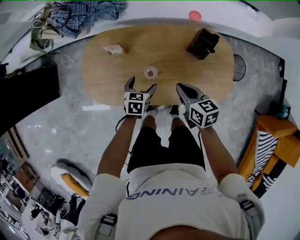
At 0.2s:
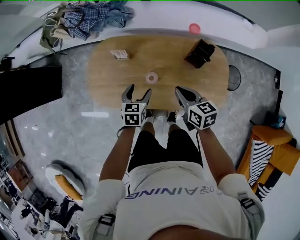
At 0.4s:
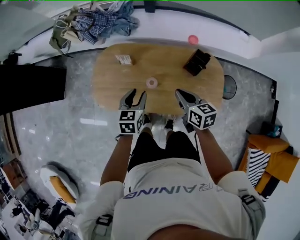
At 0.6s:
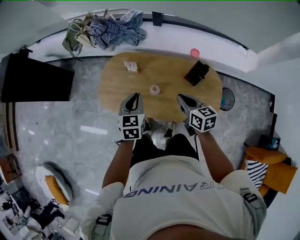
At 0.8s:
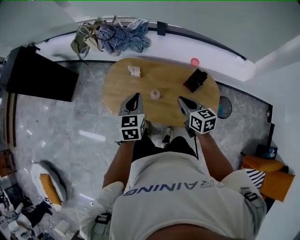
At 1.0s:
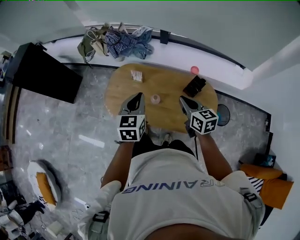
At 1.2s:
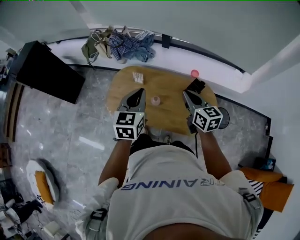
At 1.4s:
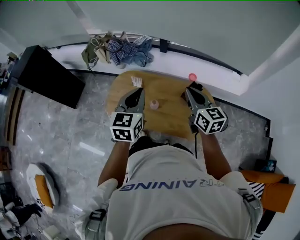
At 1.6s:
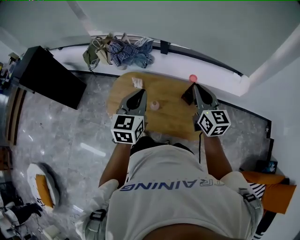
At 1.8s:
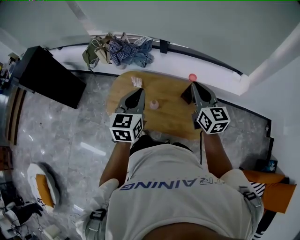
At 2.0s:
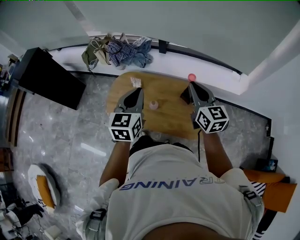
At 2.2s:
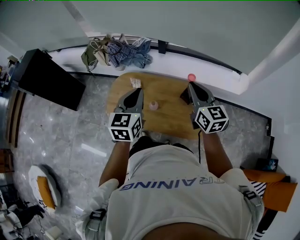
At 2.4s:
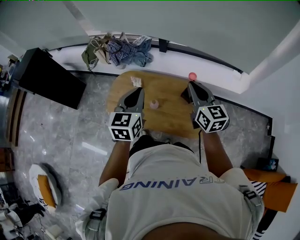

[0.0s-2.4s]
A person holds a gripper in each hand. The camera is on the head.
0.0s to 1.2s: The left gripper is displaced upward by roughly 40 cm, points its fingers about 30 degrees further upward, and closes its fingers. Meanwhile the right gripper shifts some 30 cm upward, and turns by approximately 30 degrees.
1.2s to 2.4s: The right gripper heads upward, covering roughly 10 cm.

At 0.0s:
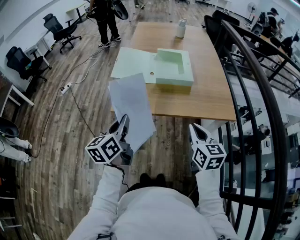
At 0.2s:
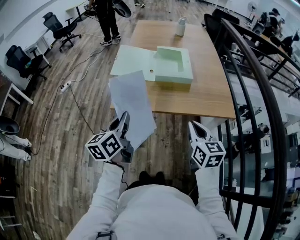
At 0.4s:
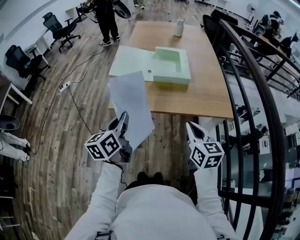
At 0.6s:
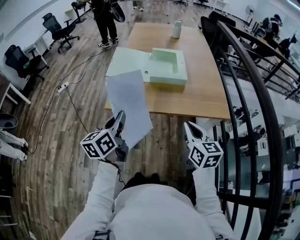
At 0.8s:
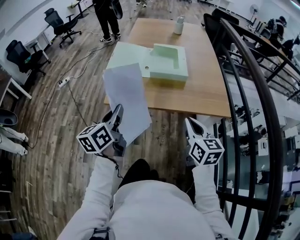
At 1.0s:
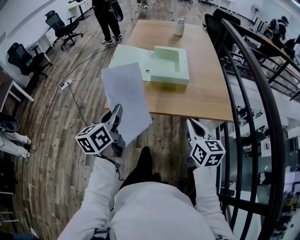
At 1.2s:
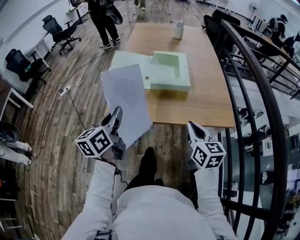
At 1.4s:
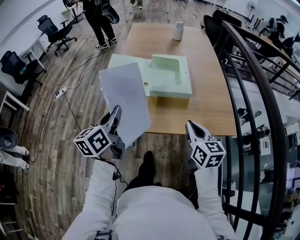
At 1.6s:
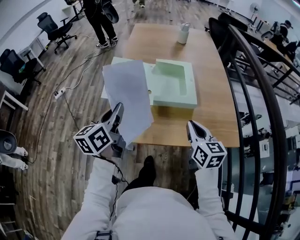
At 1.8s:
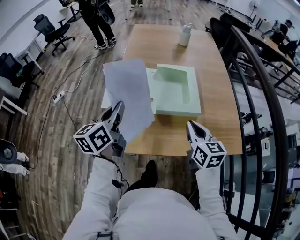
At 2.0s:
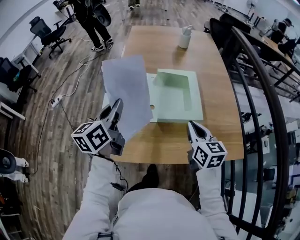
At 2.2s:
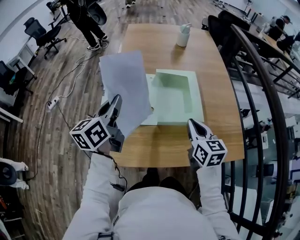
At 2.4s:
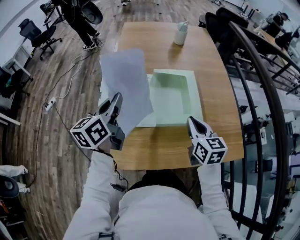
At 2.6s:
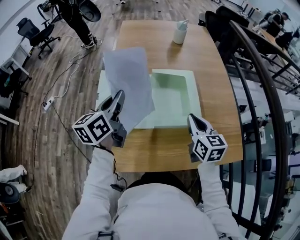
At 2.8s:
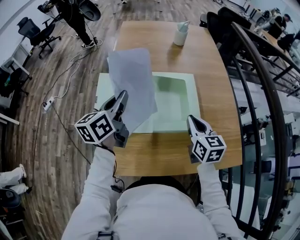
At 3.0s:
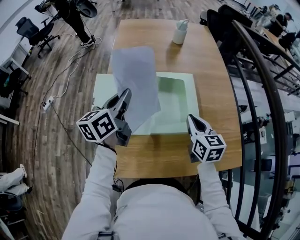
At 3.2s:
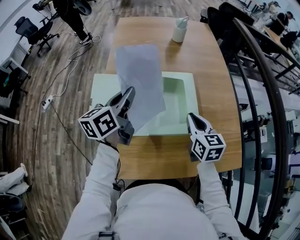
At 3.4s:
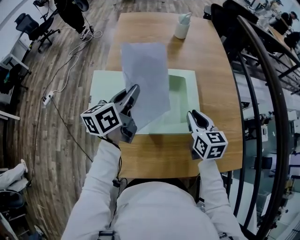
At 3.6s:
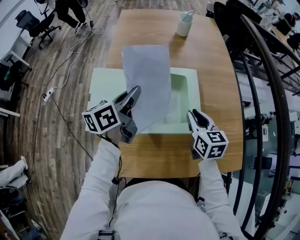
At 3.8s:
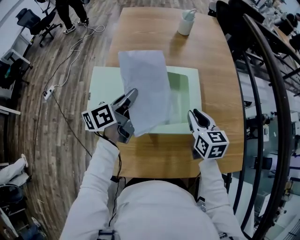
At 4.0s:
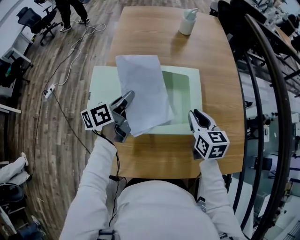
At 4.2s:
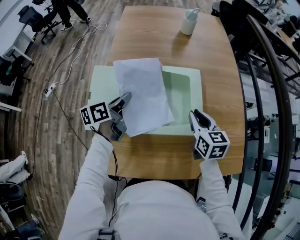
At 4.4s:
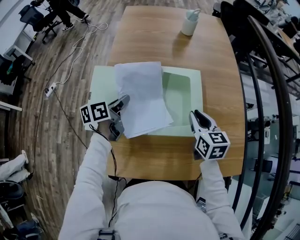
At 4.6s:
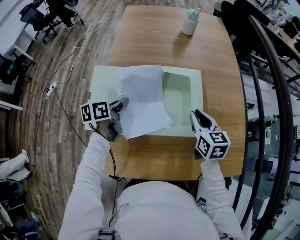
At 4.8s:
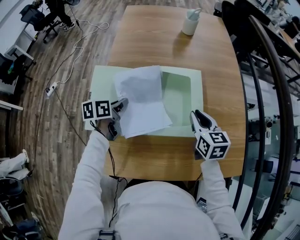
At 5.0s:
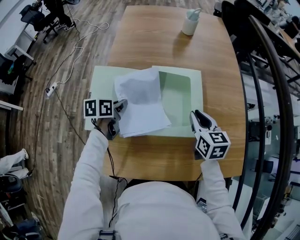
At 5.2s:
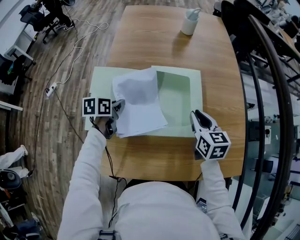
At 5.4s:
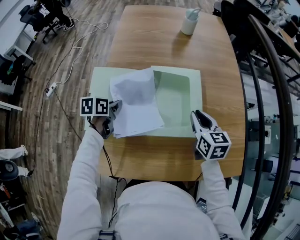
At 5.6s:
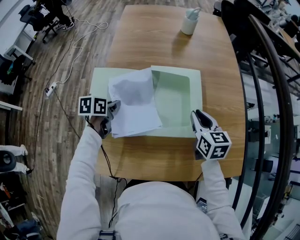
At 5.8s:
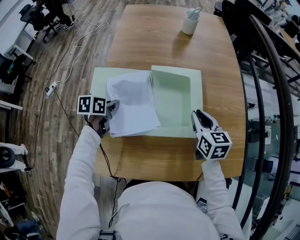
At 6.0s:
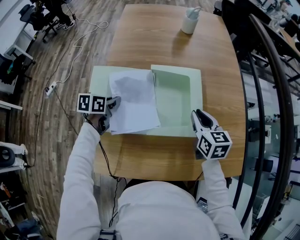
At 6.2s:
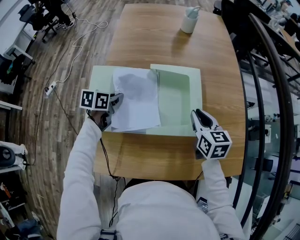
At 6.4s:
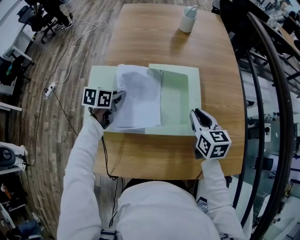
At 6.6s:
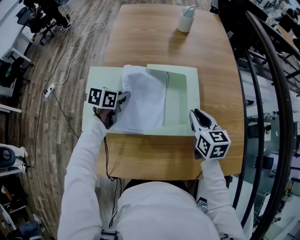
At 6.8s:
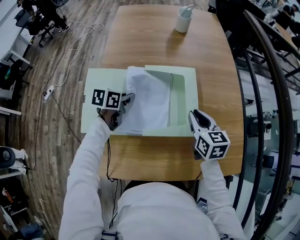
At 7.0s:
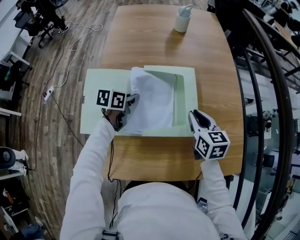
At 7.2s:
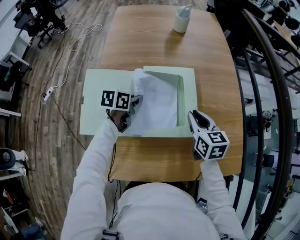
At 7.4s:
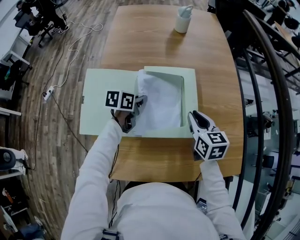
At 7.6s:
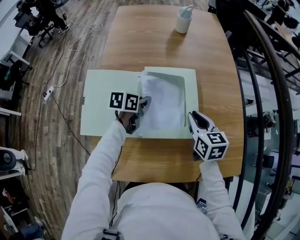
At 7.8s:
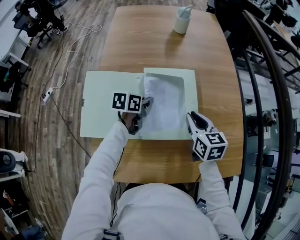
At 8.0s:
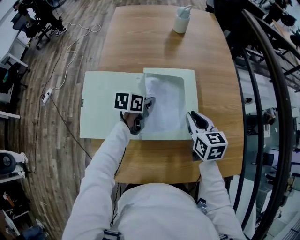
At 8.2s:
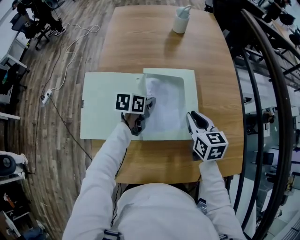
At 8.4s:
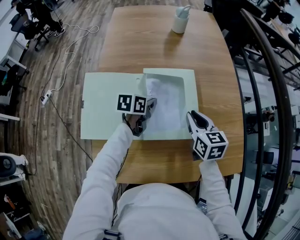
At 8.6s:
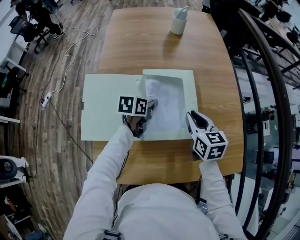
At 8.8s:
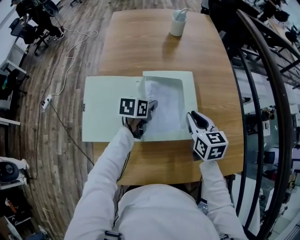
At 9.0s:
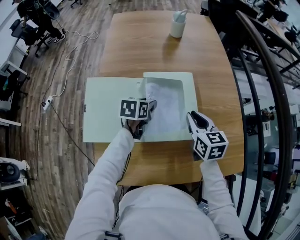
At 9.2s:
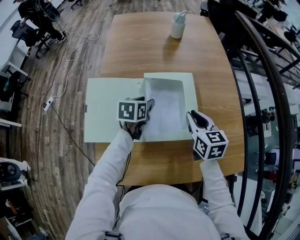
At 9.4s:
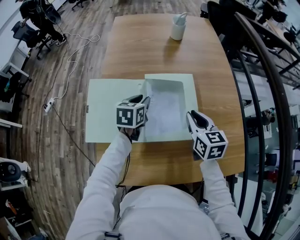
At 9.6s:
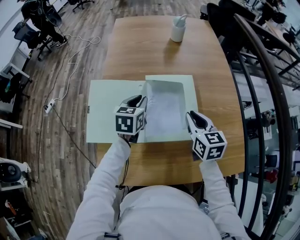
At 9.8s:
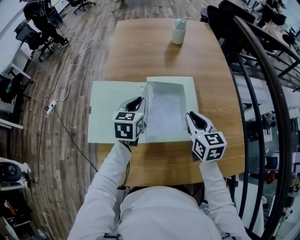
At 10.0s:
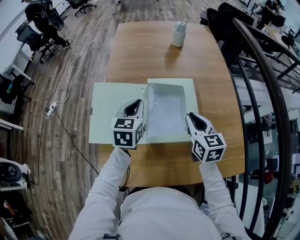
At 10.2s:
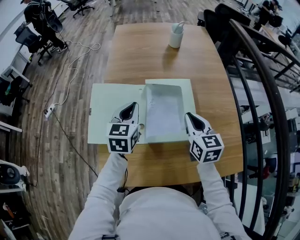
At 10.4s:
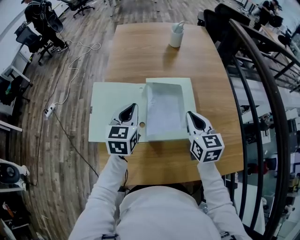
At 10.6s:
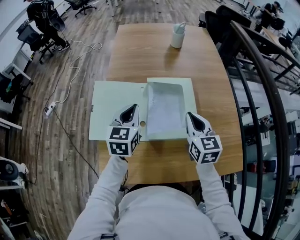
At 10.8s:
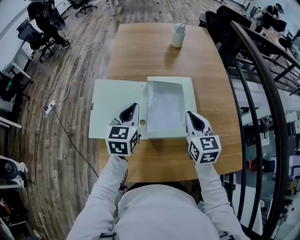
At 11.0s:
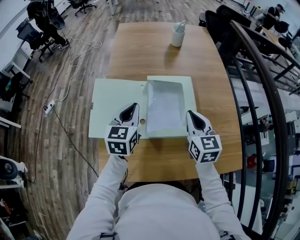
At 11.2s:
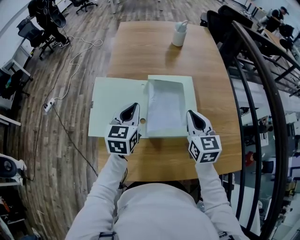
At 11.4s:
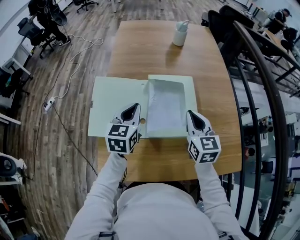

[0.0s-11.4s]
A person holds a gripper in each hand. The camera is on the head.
0.0s to 1.4s: Both grippers move forward, about 15 cm.
1.4s to 2.8s: The grippers both shift forward by approximately 25 cm.
2.8s to 4.2s: The left gripper heads downward, covering roughly 15 cm, and changes its angle by some 20 degrees; the right gripper shifts some 5 cm forward.
4.2s to 5.6s: The left gripper moves downward, about 10 cm, and turns by some 30 degrees.
5.6s to 7.2s: The left gripper shifts approximately 15 cm to the right and forward.
7.2s to 8.6s: The left gripper moves about 5 cm.
8.6s to 10.0s: The left gripper is displaced upward and to the left by some 15 cm, changes its angle by roughly 40 degrees, and opens and closes again.
10.0s to 11.4s: The grippers stay close to where they were, moving slightly.

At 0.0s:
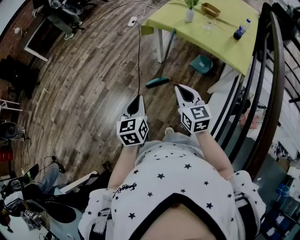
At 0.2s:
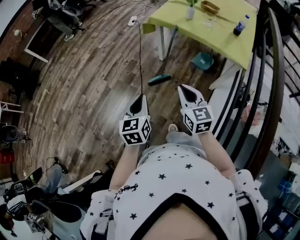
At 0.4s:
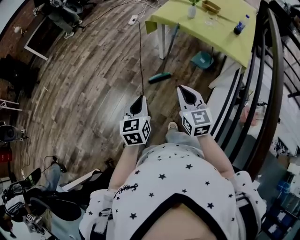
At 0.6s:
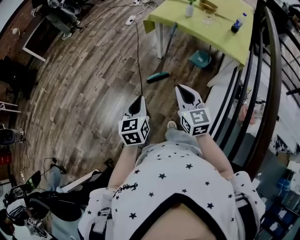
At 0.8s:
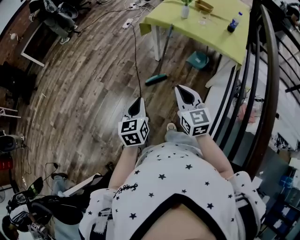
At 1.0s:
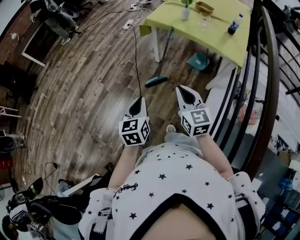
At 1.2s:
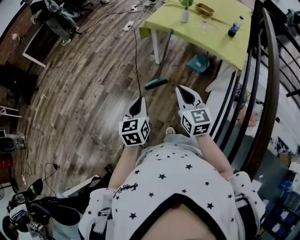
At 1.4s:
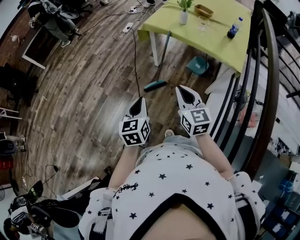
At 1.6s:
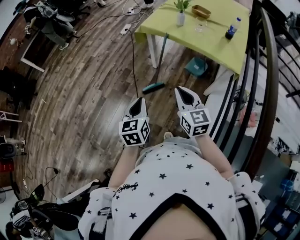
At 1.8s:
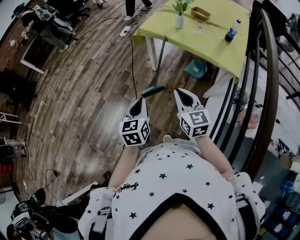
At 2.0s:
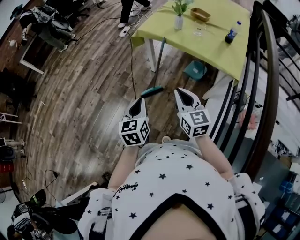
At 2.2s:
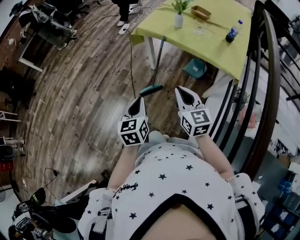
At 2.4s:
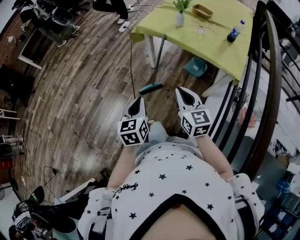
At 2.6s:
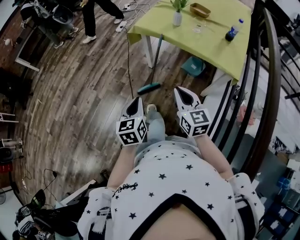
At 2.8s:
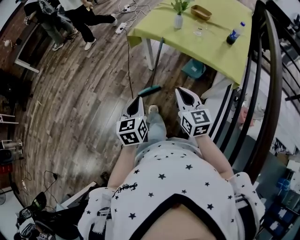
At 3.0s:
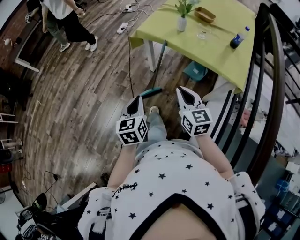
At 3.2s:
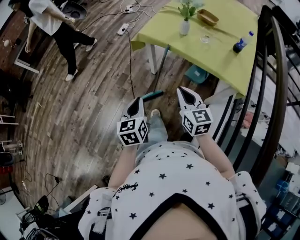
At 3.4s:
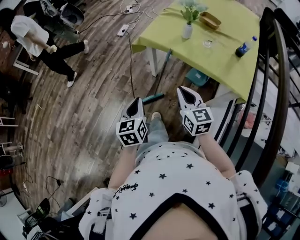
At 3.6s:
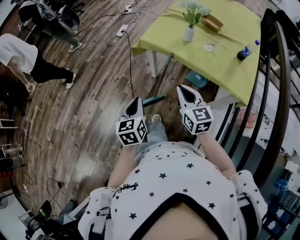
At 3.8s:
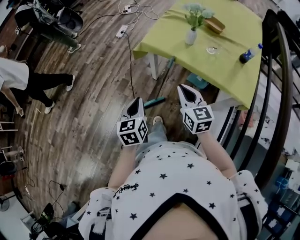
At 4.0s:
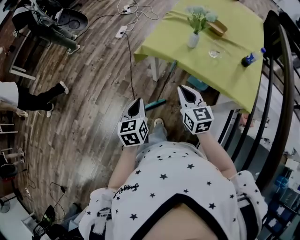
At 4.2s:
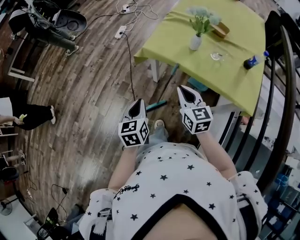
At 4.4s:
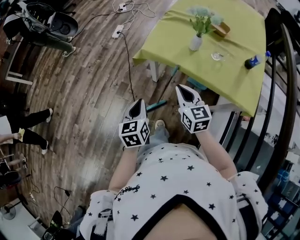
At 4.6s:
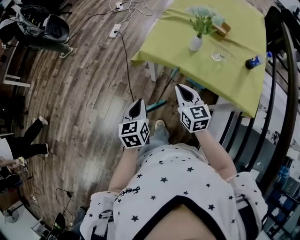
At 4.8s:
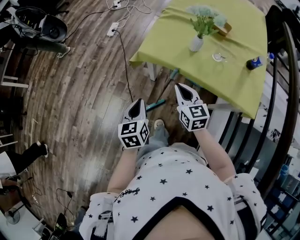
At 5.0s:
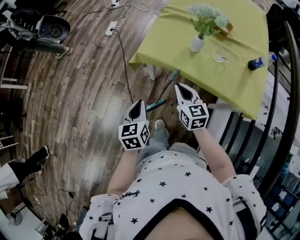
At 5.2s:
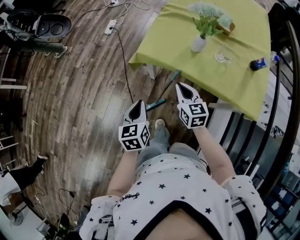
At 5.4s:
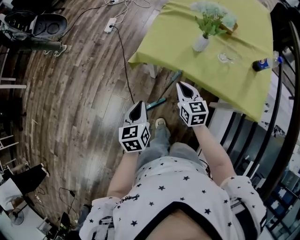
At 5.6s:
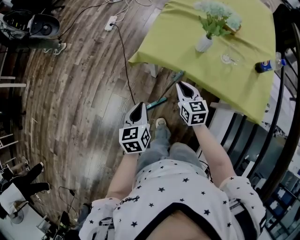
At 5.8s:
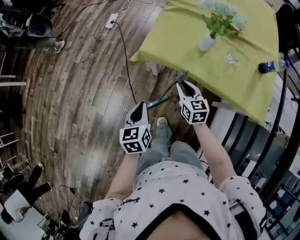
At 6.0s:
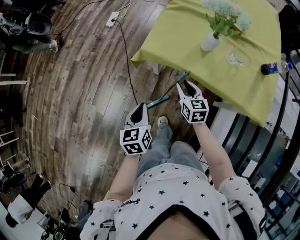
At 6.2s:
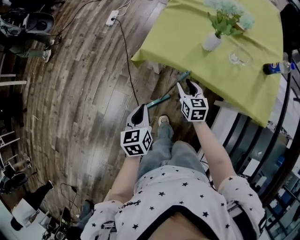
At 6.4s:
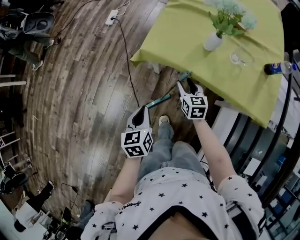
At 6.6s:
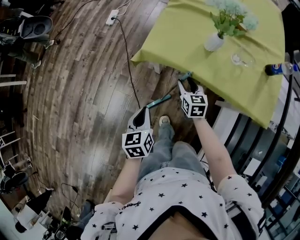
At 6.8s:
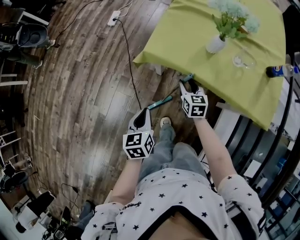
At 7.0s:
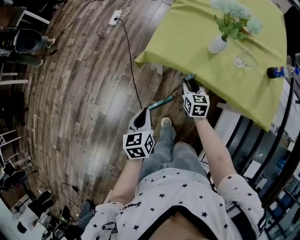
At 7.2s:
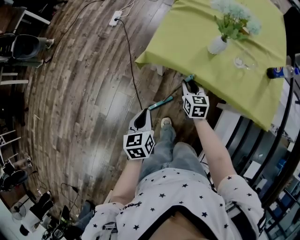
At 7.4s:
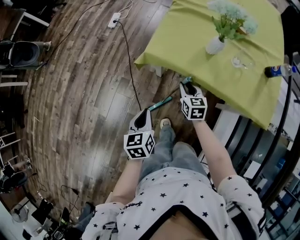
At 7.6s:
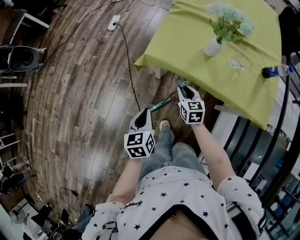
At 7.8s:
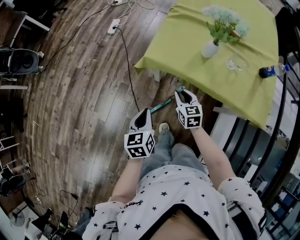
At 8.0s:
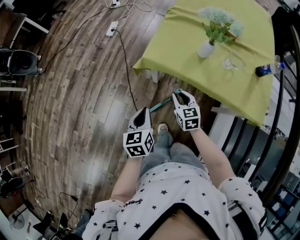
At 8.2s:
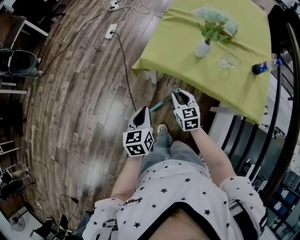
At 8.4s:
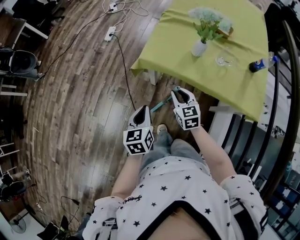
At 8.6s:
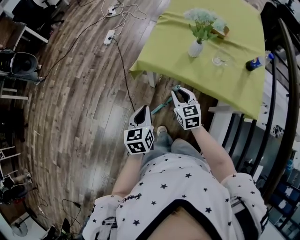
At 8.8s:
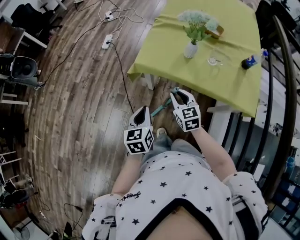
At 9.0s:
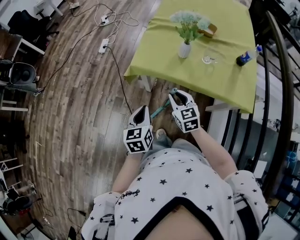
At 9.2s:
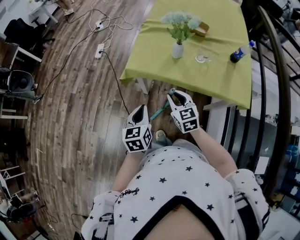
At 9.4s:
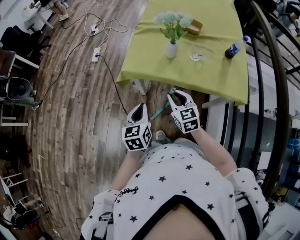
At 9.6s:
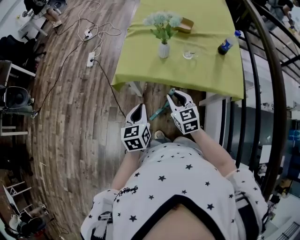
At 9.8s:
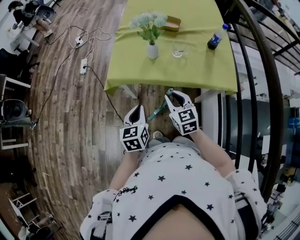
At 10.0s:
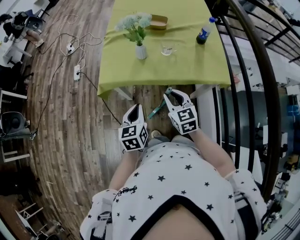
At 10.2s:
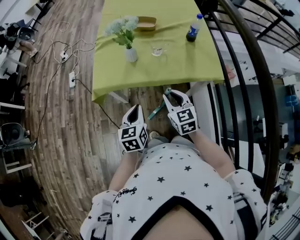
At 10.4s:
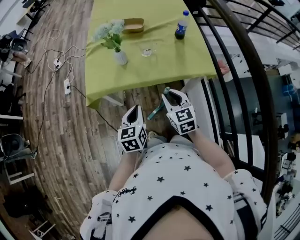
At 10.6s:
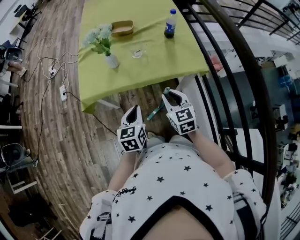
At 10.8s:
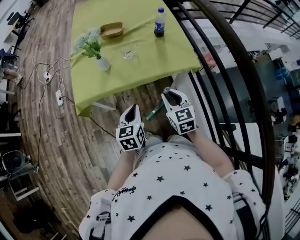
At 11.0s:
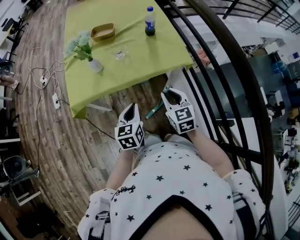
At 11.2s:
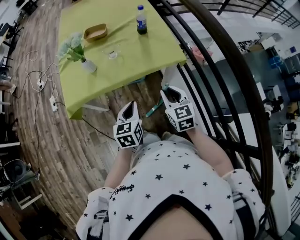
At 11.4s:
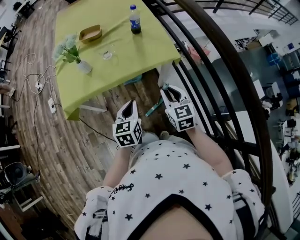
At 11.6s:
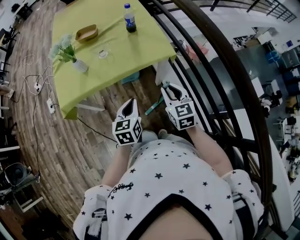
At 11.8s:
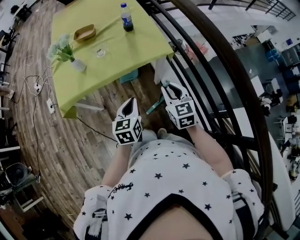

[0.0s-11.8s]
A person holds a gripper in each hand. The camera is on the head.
1.4s to 3.0s: Both grippers move forward, roughly 15 cm.
3.0s to 4.4s: The grippers both shift forward by approximately 25 cm.
4.4s to 6.0s: The left gripper moves downward and forward, approximately 10 cm. The right gripper is displaced downward and forward by roughly 20 cm, and opens its fingers.
6.0s to 7.4s: There are only small adjustments of the grippers.
7.4s to 8.8s: The left gripper moves upward, approximately 10 cm. Meanwhile the right gripper heads upward and backward, covering about 15 cm.
8.8s to 10.4s: The right gripper changes place by some 20 cm, and changes its angle by roughly 30 degrees; the left gripper shifts by about 20 cm, and swivels approximately 30 degrees.
10.4s to 11.8s: The grippers both shift to the right by approximately 20 cm.
